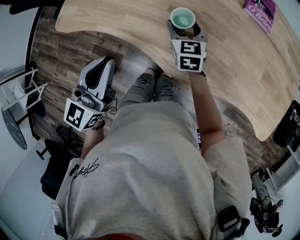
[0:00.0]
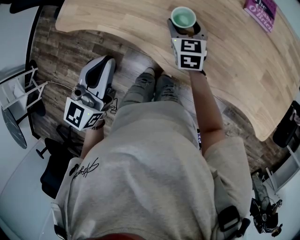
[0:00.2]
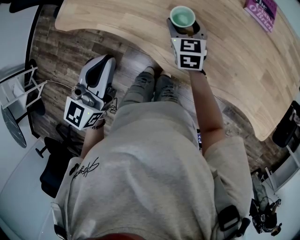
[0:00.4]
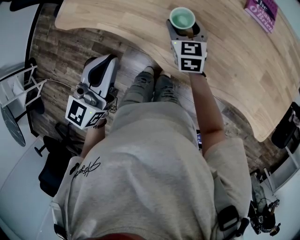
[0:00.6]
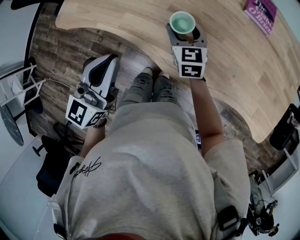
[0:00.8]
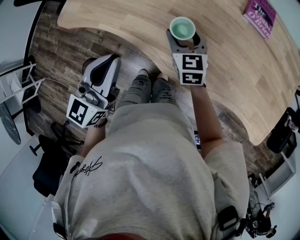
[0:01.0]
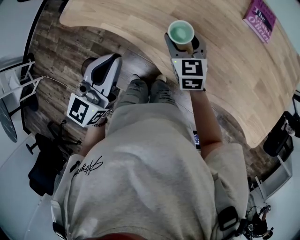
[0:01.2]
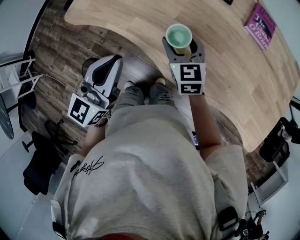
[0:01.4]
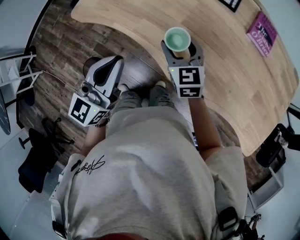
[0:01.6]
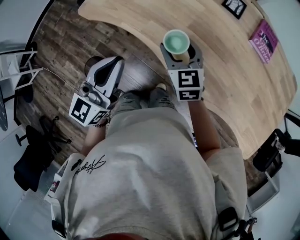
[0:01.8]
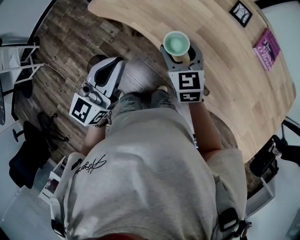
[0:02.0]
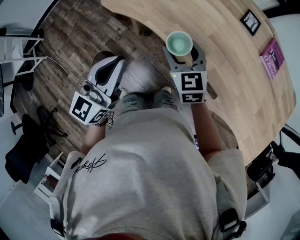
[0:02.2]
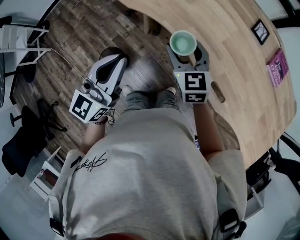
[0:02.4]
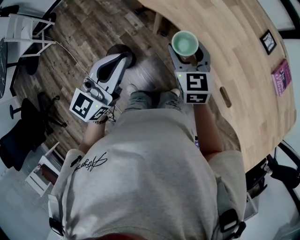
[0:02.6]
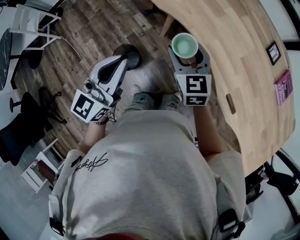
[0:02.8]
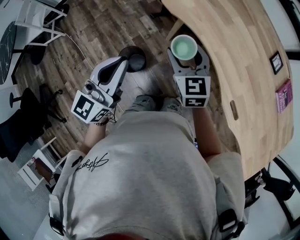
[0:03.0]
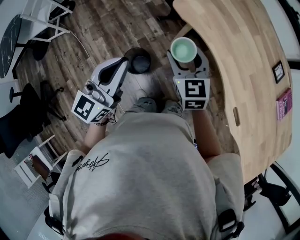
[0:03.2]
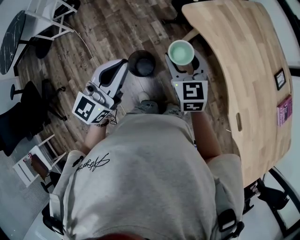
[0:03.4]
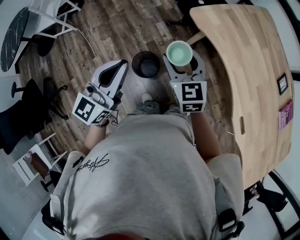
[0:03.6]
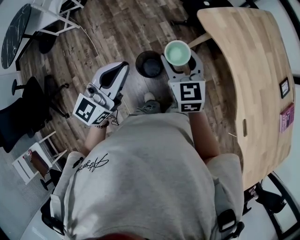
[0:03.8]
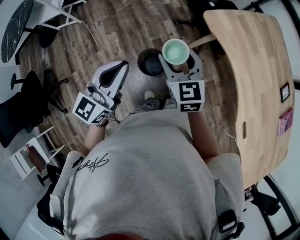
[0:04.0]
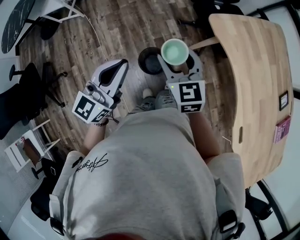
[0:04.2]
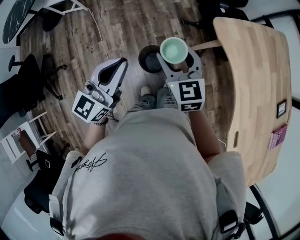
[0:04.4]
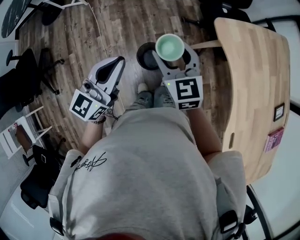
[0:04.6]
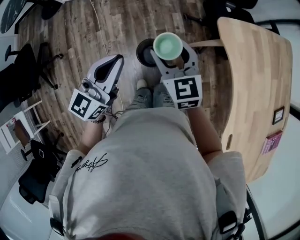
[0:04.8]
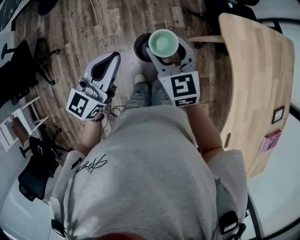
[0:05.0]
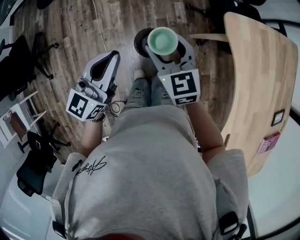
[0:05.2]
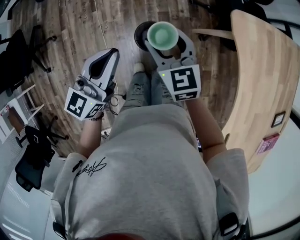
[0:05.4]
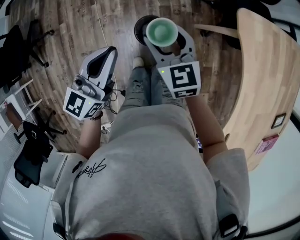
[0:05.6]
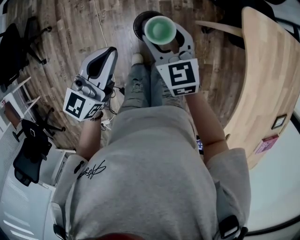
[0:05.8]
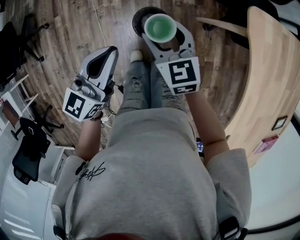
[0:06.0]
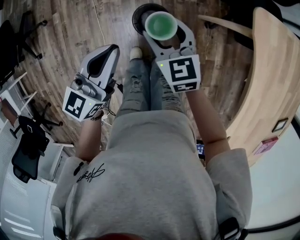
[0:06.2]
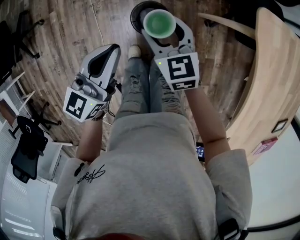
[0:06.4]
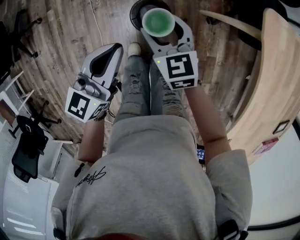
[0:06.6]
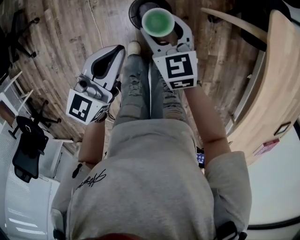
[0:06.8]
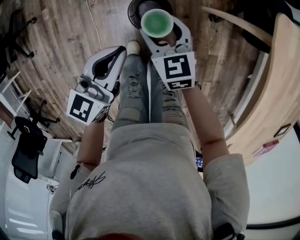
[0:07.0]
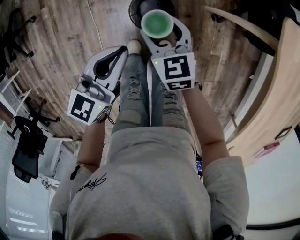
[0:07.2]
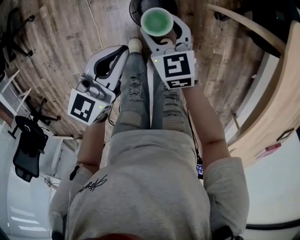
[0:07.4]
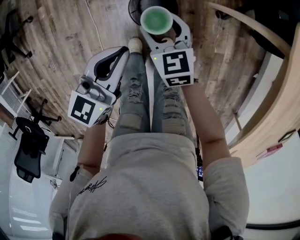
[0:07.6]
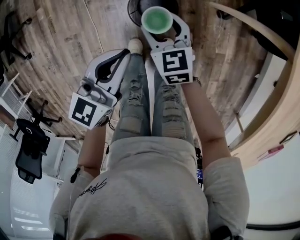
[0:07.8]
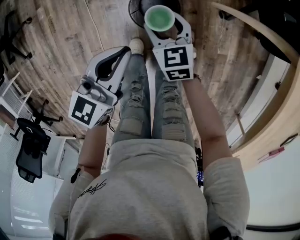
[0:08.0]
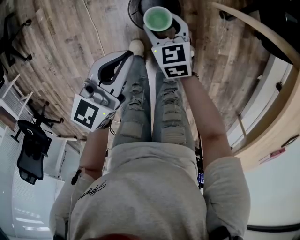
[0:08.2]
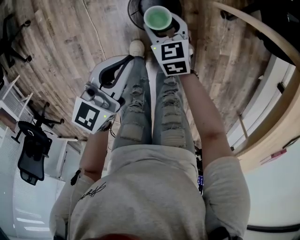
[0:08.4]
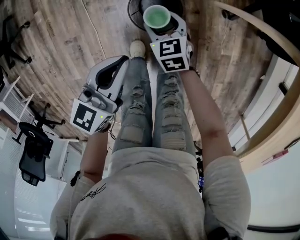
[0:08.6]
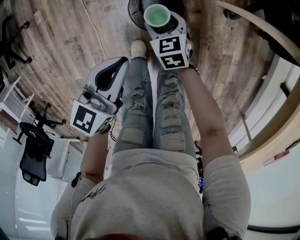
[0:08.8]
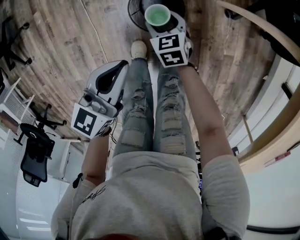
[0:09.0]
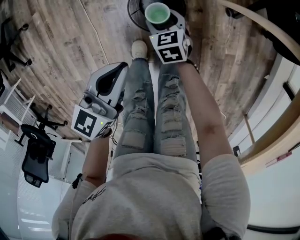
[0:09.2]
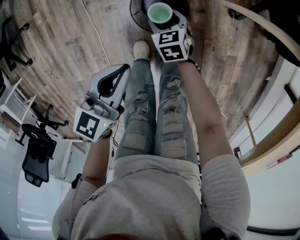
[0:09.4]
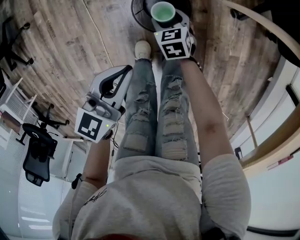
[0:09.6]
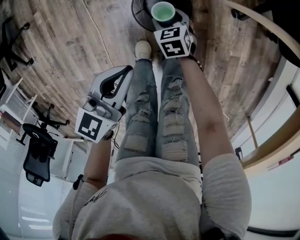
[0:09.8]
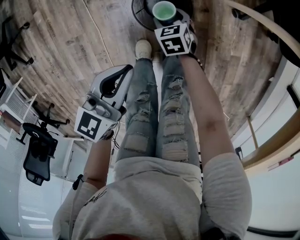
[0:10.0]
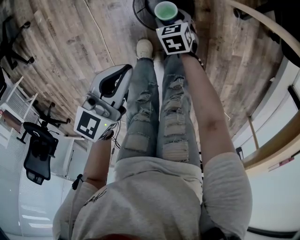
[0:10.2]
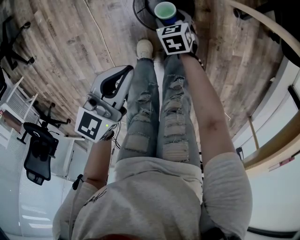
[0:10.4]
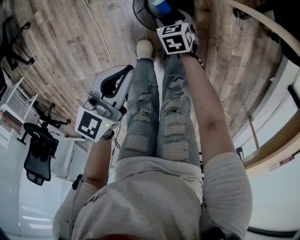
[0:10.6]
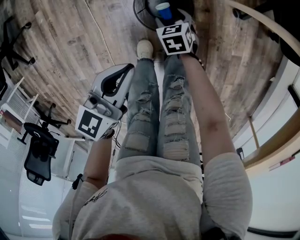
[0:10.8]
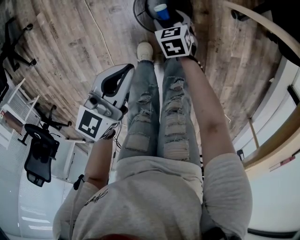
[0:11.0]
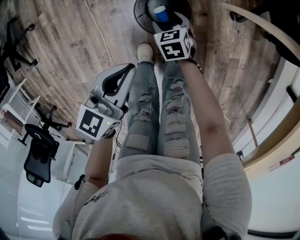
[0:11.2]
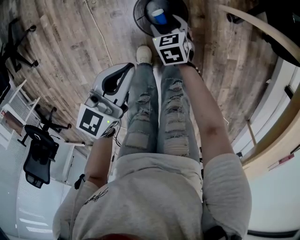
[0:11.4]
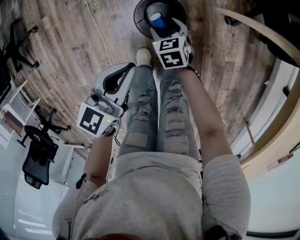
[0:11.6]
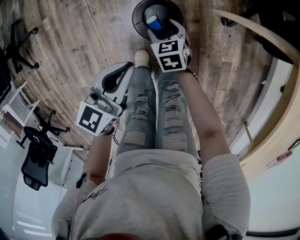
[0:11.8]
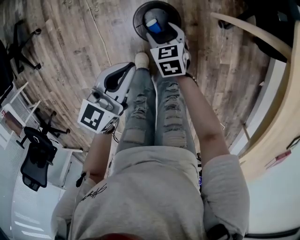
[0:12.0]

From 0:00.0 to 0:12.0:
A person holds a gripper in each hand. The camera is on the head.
From 0:00.0 to 0:01.6: The right gripper travels upward, to the left and backward by roughly 10 cm.
From 0:01.6 to 0:03.0: The two grippers go about 30 cm to the left. The right gripper changes its angle by some 20 degrees.
From 0:03.0 to 0:04.4: Both grippers travel together to the left, approximately 20 cm. The right gripper changes its angle by approximately 20 degrees.
From 0:04.4 to 0:06.0: Both grippers move downward, about 15 cm.
From 0:06.0 to 0:07.6: The two grippers go roughly 20 cm downward.
From 0:07.6 to 0:09.0: The left gripper is displaced downward by approximately 5 cm; the right gripper shifts roughly 20 cm downward.
From 0:09.0 to 0:10.4: The right gripper goes approximately 10 cm downward.
From 0:10.4 to 0:12.0: The left gripper shifts approximately 10 cm upward. The right gripper moves upward, roughly 15 cm.

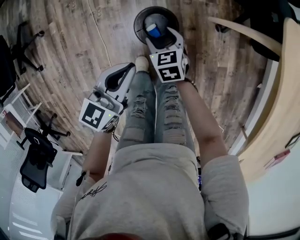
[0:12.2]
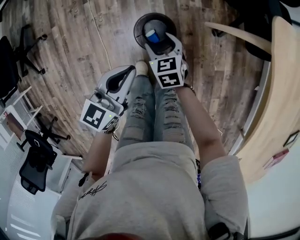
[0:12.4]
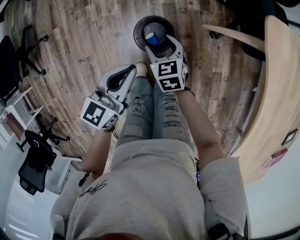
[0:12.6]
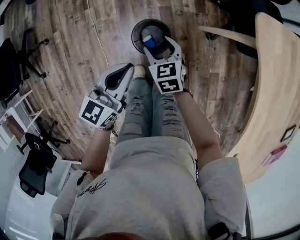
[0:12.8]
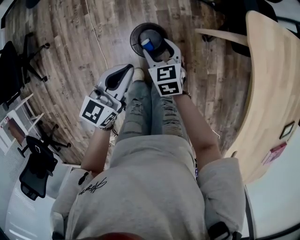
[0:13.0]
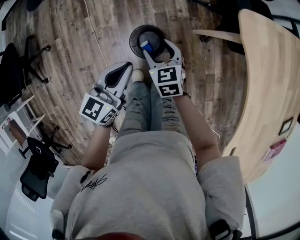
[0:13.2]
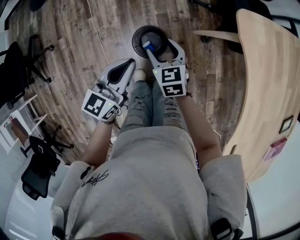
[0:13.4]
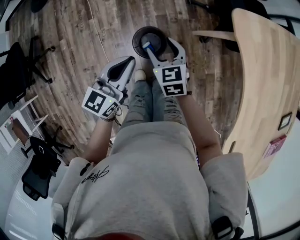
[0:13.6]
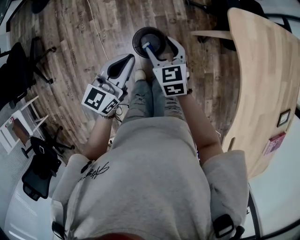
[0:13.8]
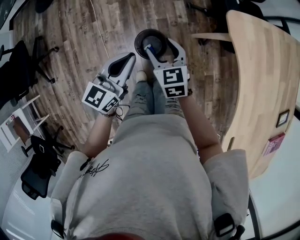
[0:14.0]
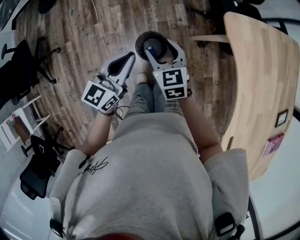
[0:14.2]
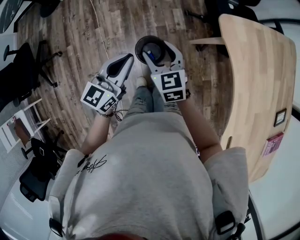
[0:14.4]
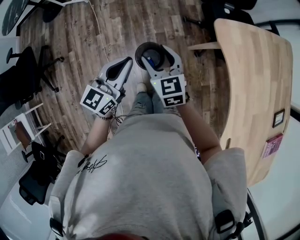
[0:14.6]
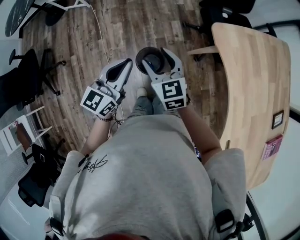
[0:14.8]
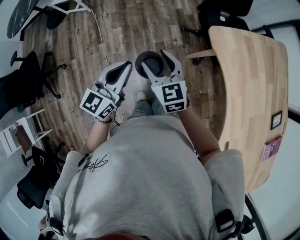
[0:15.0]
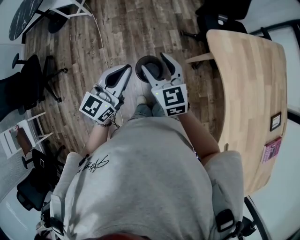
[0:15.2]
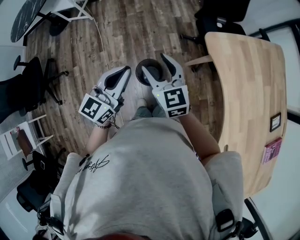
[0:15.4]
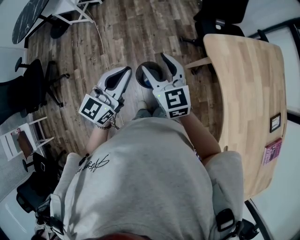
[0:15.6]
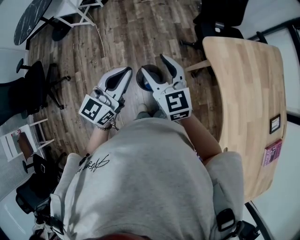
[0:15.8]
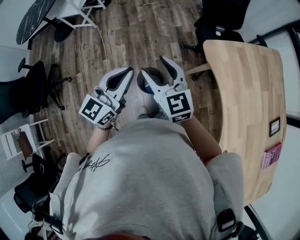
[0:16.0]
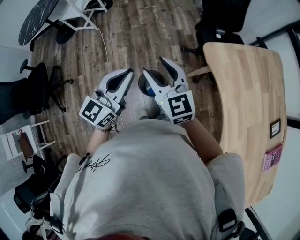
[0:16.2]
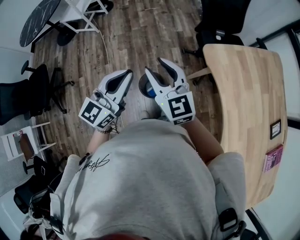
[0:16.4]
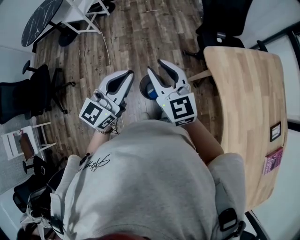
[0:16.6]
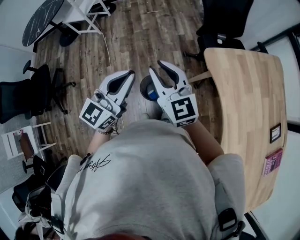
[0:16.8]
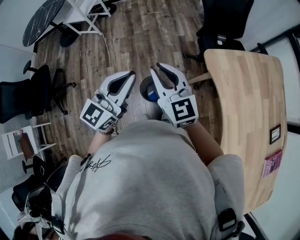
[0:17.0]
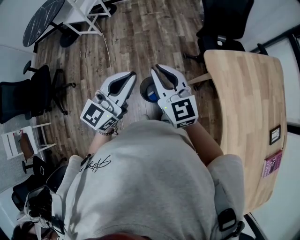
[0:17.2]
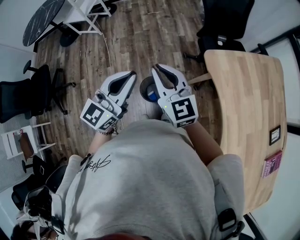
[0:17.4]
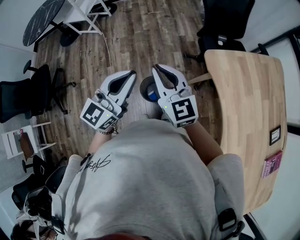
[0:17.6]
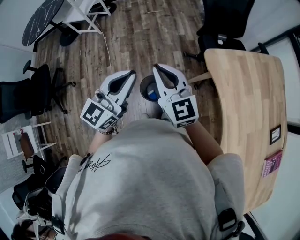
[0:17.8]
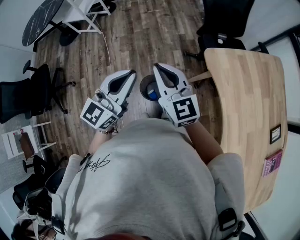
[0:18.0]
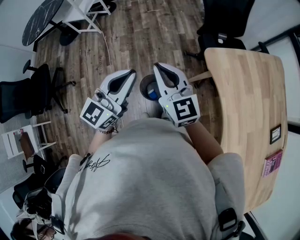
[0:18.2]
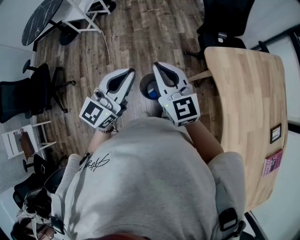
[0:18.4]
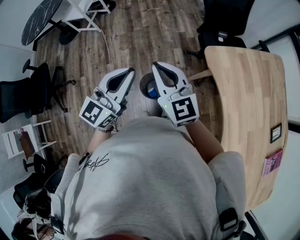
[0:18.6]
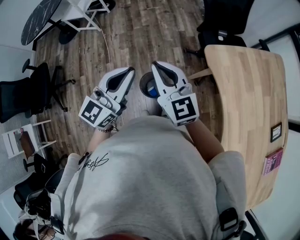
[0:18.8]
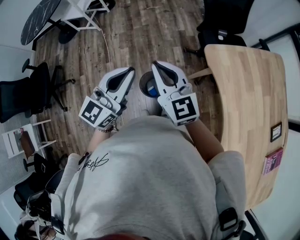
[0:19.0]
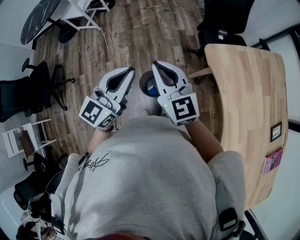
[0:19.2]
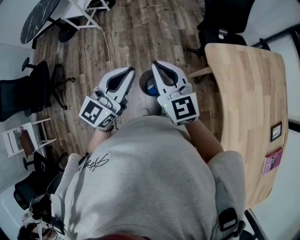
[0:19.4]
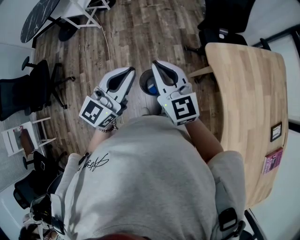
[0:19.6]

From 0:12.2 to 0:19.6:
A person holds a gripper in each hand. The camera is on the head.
From 0:12.2 to 0:13.6: The right gripper shifts some 20 cm upward; the left gripper moves upward, approximately 15 cm.
From 0:13.6 to 0:15.2: The grippers both shift upward by approximately 20 cm. The right gripper swivels roughly 20 degrees.
From 0:15.2 to 0:16.6: Both grippers move upward, about 10 cm. The right gripper closes up.
From 0:16.6 to 0:18.2: The right gripper closes its fingers.
From 0:18.2 to 0:19.6: The two grippers keep their place.

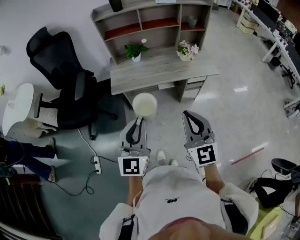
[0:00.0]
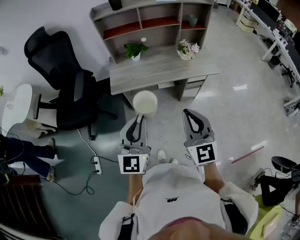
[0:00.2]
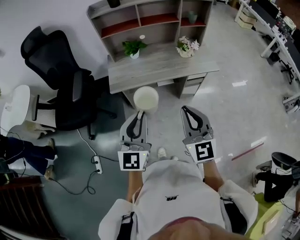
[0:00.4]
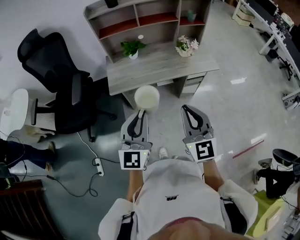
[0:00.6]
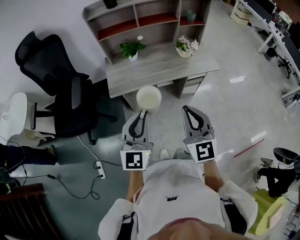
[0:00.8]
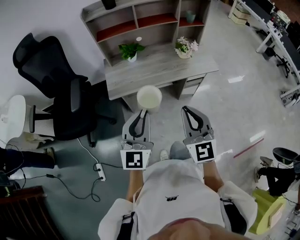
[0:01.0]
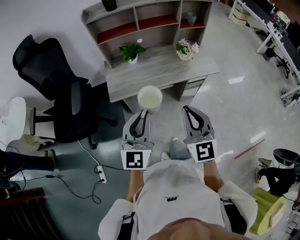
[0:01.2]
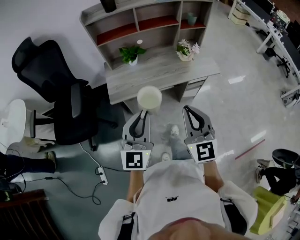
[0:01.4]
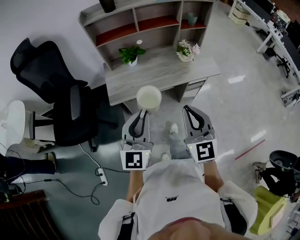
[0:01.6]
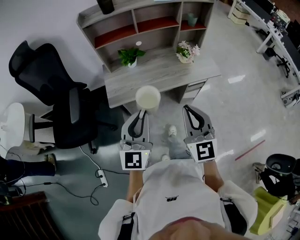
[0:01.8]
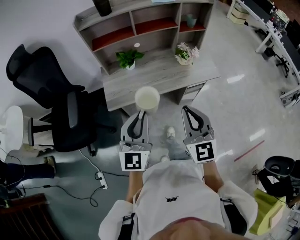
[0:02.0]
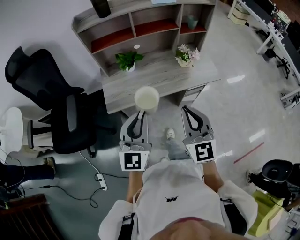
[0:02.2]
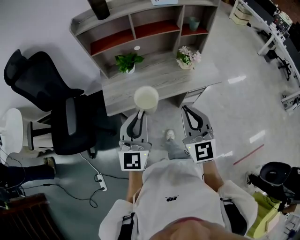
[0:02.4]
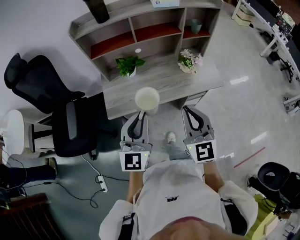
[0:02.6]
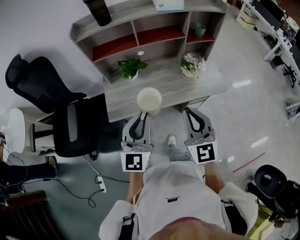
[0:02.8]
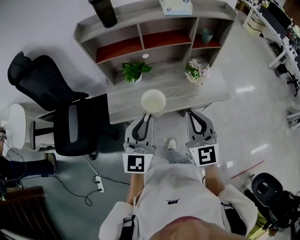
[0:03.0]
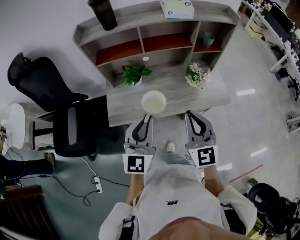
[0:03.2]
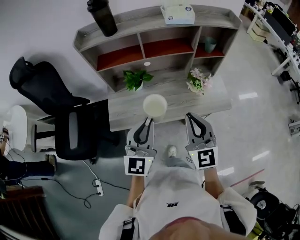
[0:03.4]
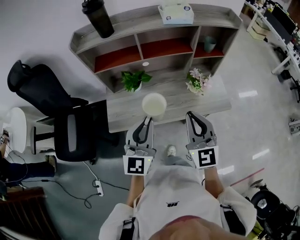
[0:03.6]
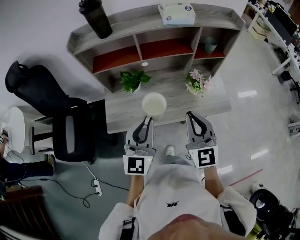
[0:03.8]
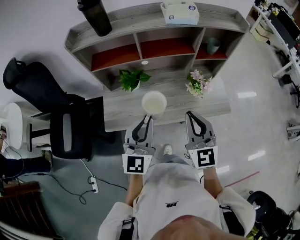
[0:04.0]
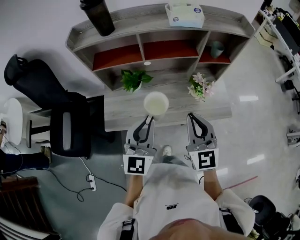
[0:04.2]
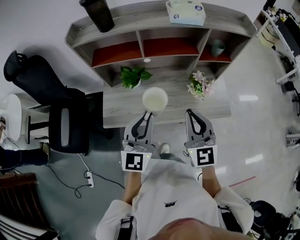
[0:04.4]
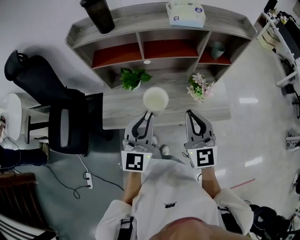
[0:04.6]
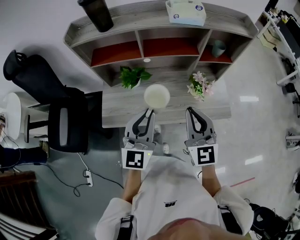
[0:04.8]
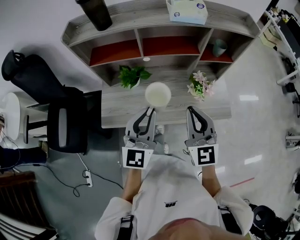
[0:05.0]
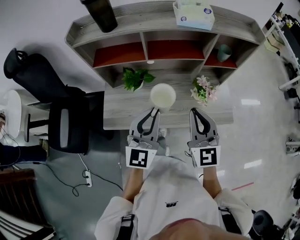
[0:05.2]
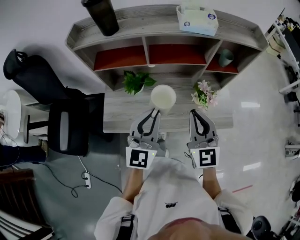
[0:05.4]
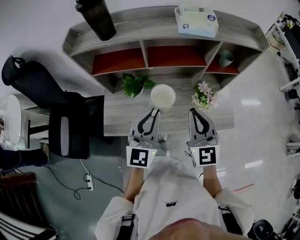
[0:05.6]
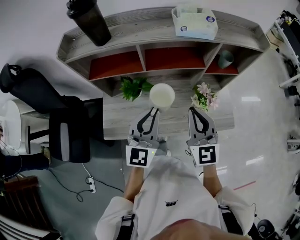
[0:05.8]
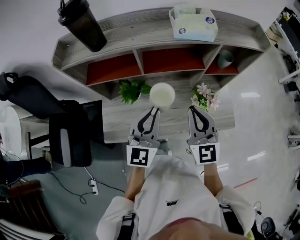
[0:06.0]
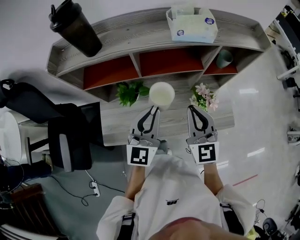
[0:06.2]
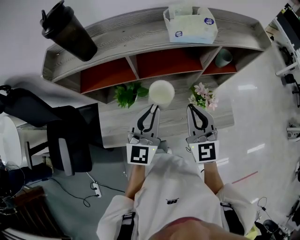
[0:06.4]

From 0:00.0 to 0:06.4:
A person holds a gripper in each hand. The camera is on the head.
From 0:00.0 to 0:01.6: Both grippers move forward, some 10 cm.
From 0:01.6 to 0:03.2: Both grippers travel together forward, some 20 cm.
From 0:03.2 to 0:04.8: Both grippers move forward, roughly 10 cm.
From 0:04.8 to 0:06.4: Both grippers travel together forward, approximately 15 cm.
